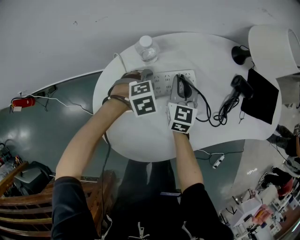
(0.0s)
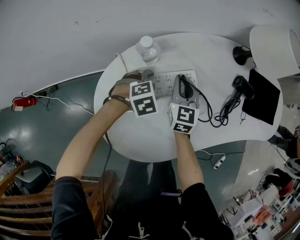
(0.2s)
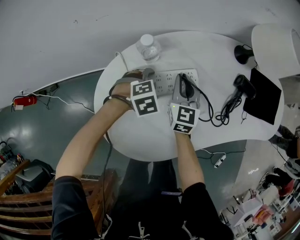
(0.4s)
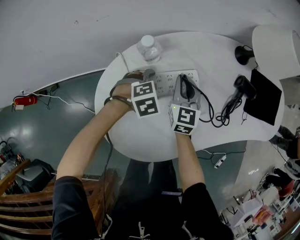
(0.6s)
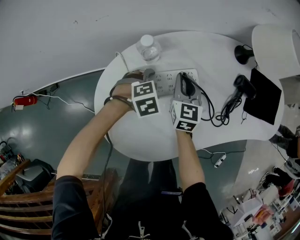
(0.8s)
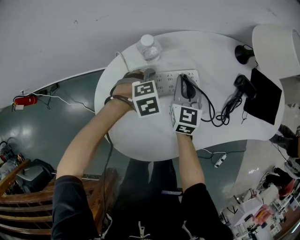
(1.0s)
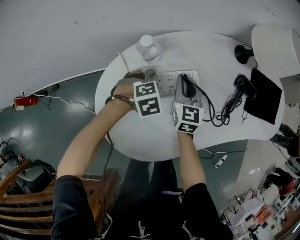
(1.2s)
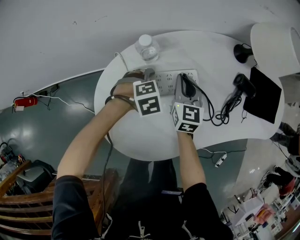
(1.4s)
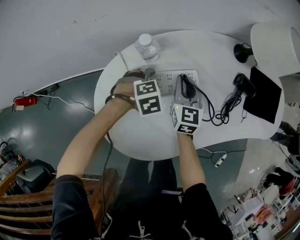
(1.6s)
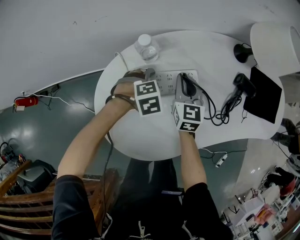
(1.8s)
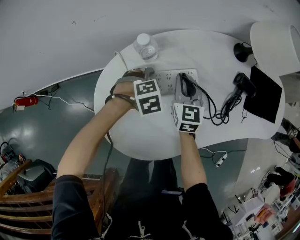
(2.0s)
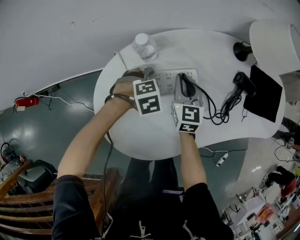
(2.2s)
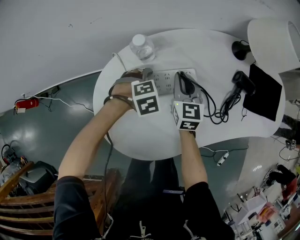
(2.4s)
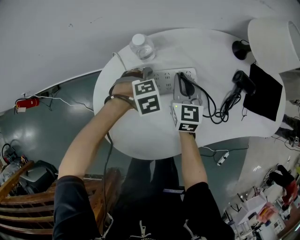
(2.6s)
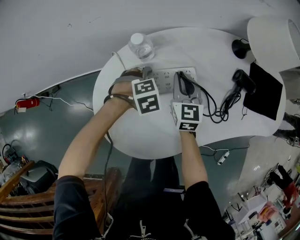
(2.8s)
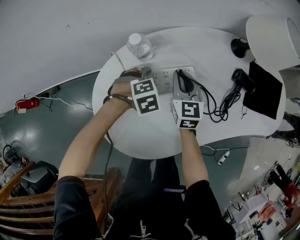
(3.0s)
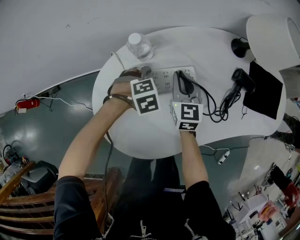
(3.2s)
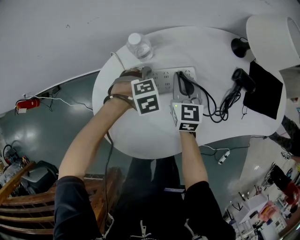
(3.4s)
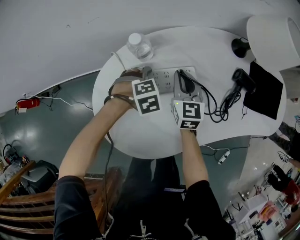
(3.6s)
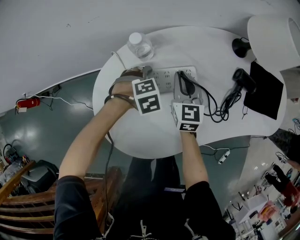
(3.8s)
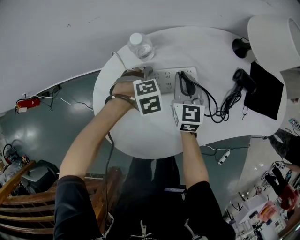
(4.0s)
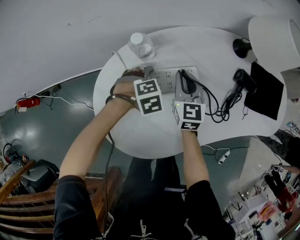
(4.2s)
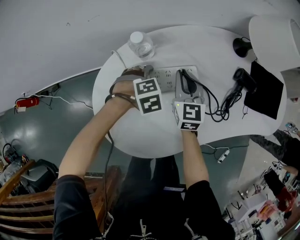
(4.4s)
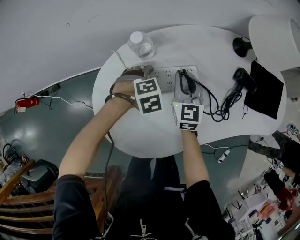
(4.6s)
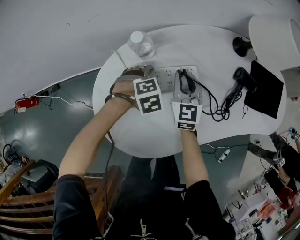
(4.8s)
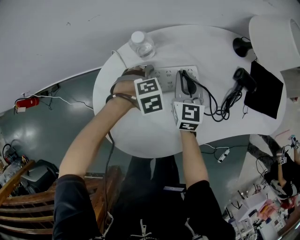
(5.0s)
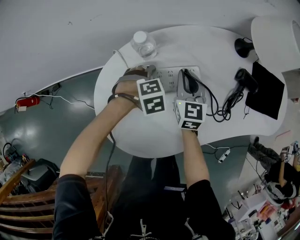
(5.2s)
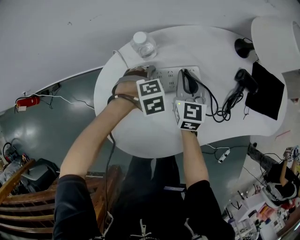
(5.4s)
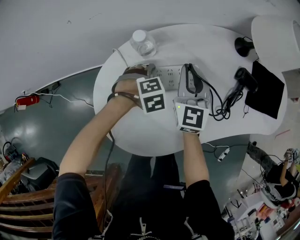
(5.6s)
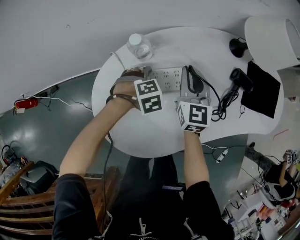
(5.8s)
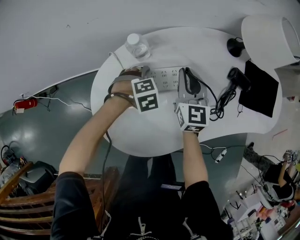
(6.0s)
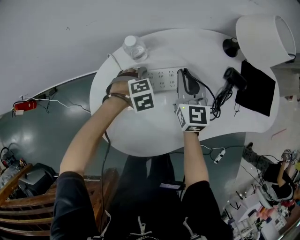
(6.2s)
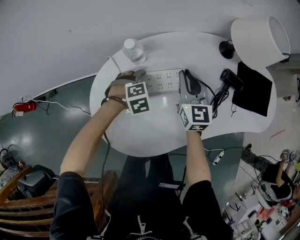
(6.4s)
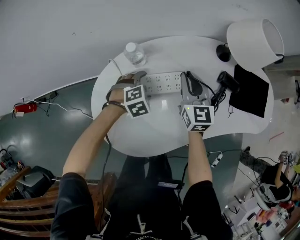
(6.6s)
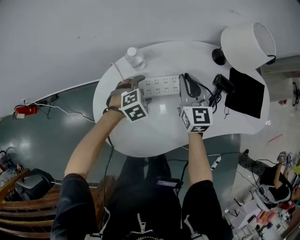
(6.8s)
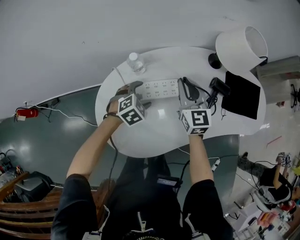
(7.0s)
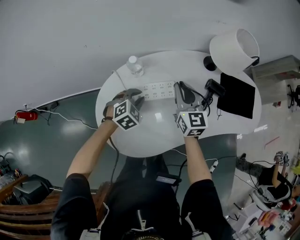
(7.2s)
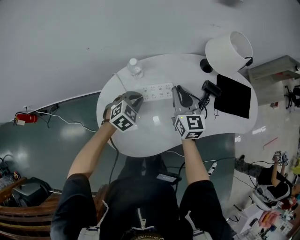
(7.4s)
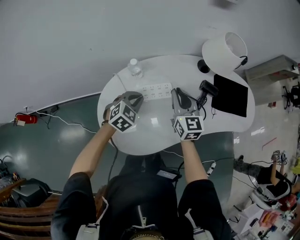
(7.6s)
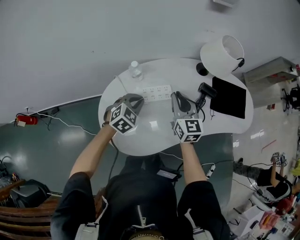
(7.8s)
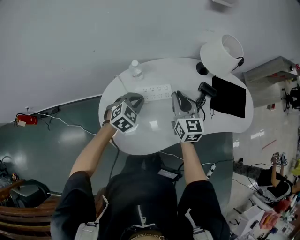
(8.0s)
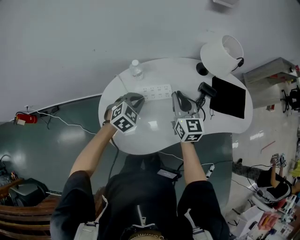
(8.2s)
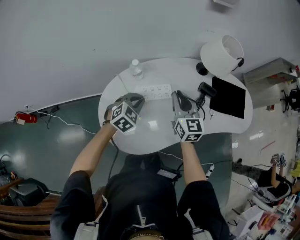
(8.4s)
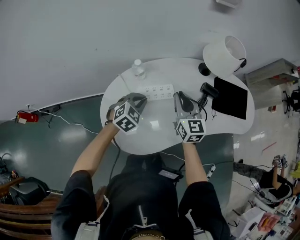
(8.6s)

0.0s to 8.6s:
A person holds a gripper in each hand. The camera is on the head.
0.0s to 2.8s: The grippers stay close to where they were, moving slightly.
2.8s to 4.4s: The two grippers keep their place.
4.4s to 5.8s: The right gripper goes approximately 5 cm upward.
5.8s to 7.2s: Both grippers move upward, some 10 cm. The left gripper swivels approximately 30 degrees, and closes up.
7.2s to 8.6s: The left gripper heads upward, covering roughly 10 cm. Meanwhile the right gripper goes approximately 5 cm backward.

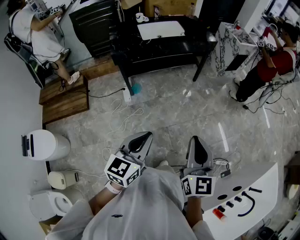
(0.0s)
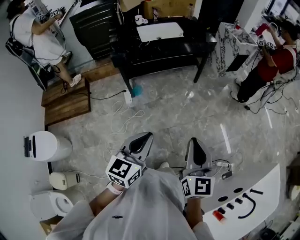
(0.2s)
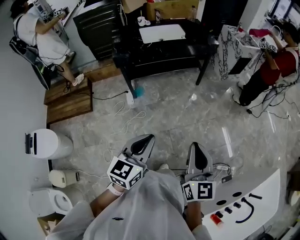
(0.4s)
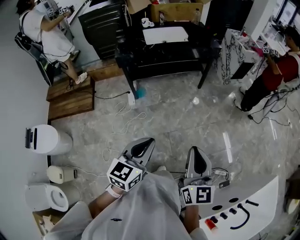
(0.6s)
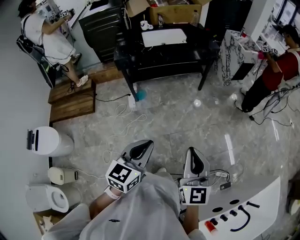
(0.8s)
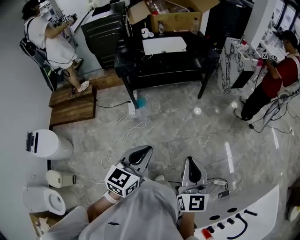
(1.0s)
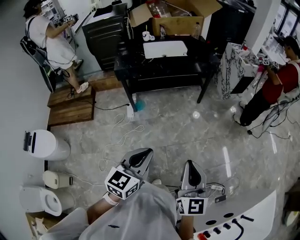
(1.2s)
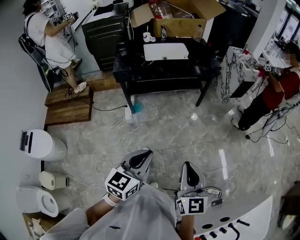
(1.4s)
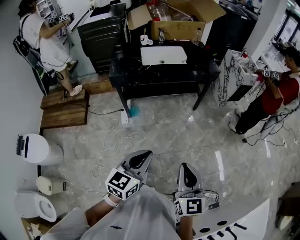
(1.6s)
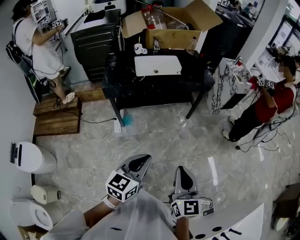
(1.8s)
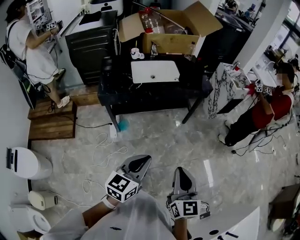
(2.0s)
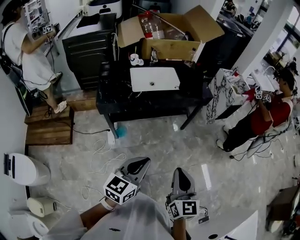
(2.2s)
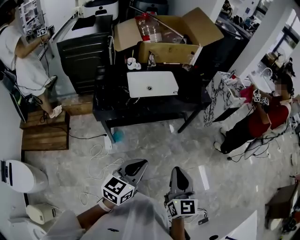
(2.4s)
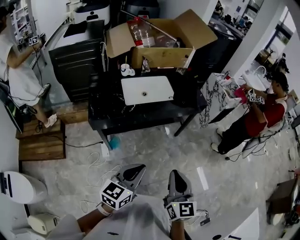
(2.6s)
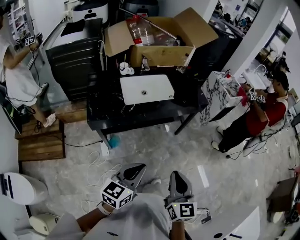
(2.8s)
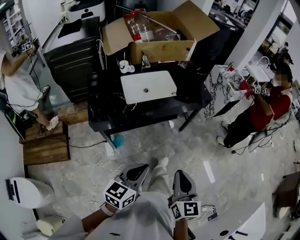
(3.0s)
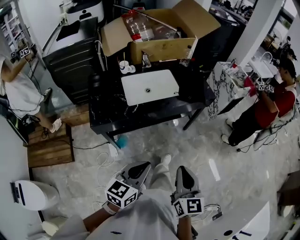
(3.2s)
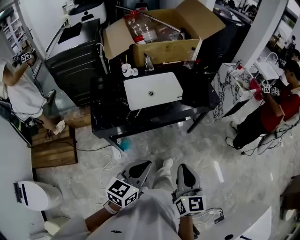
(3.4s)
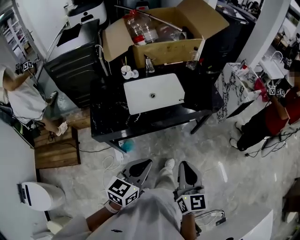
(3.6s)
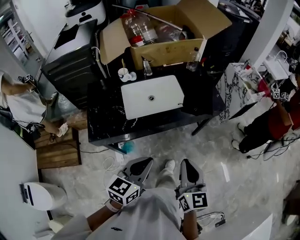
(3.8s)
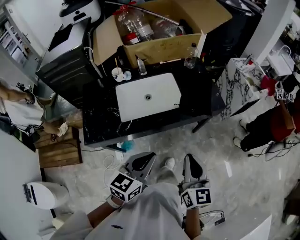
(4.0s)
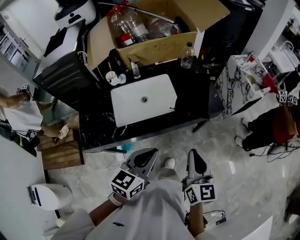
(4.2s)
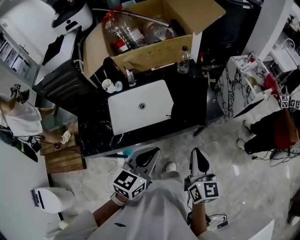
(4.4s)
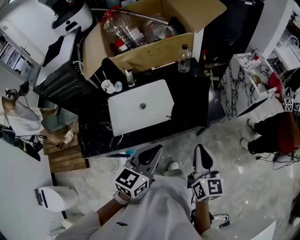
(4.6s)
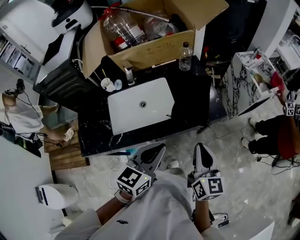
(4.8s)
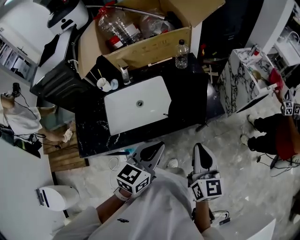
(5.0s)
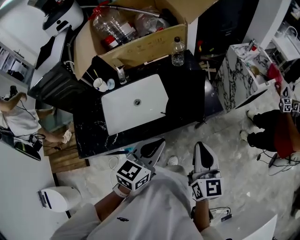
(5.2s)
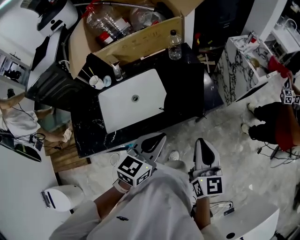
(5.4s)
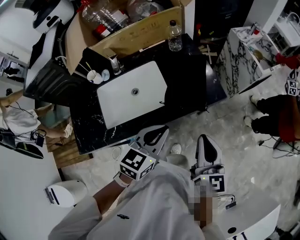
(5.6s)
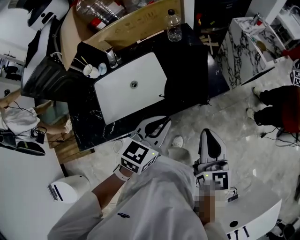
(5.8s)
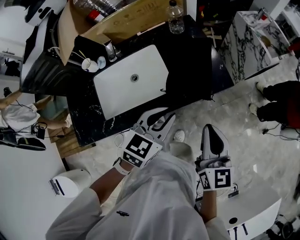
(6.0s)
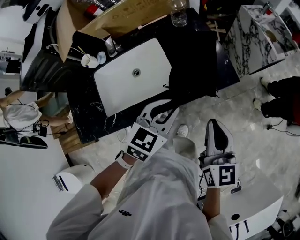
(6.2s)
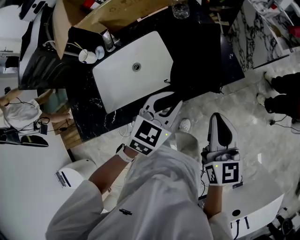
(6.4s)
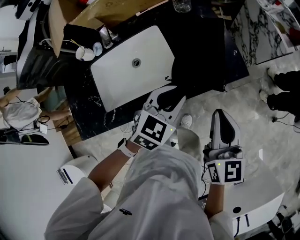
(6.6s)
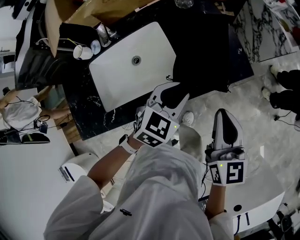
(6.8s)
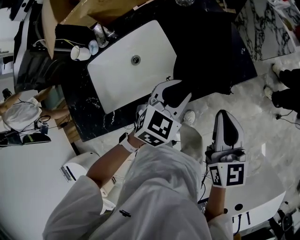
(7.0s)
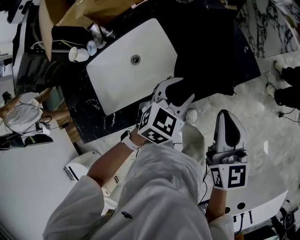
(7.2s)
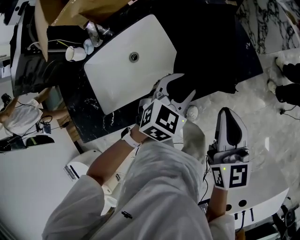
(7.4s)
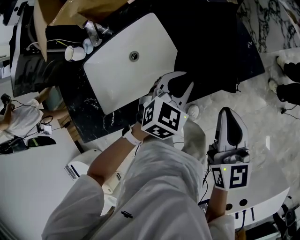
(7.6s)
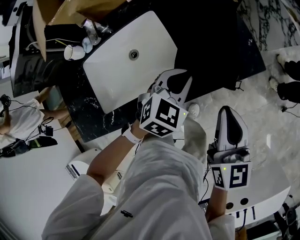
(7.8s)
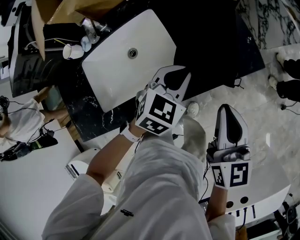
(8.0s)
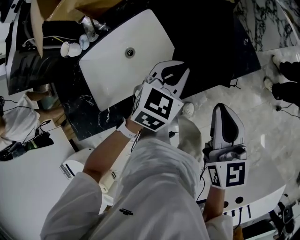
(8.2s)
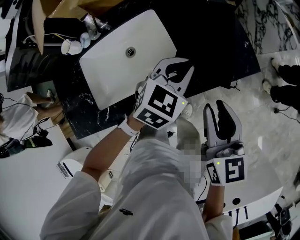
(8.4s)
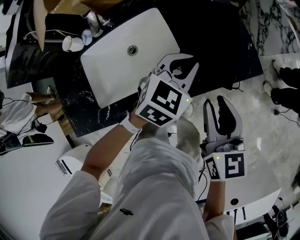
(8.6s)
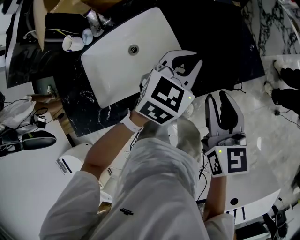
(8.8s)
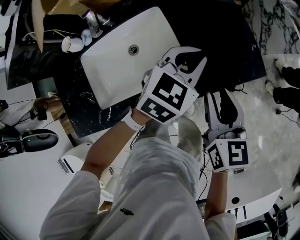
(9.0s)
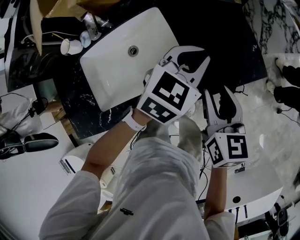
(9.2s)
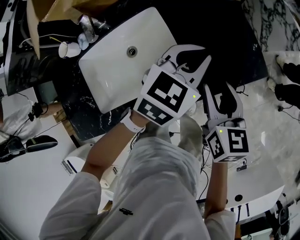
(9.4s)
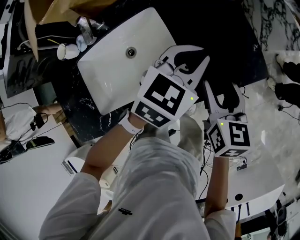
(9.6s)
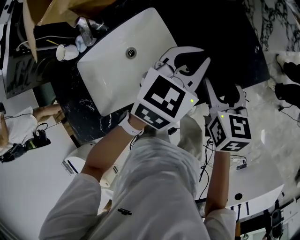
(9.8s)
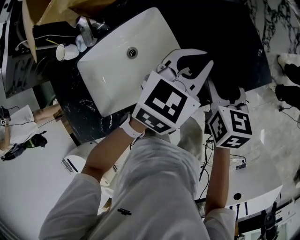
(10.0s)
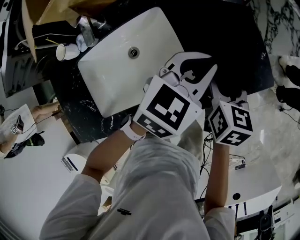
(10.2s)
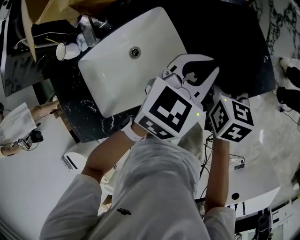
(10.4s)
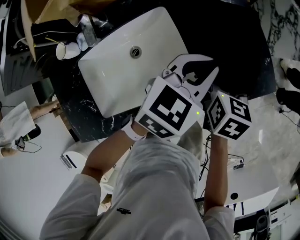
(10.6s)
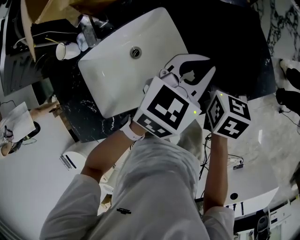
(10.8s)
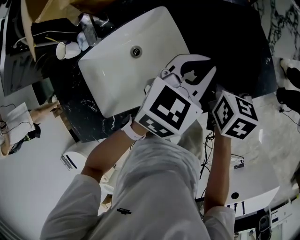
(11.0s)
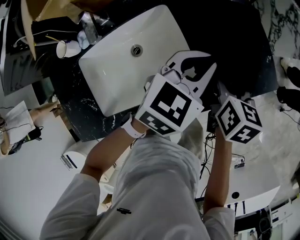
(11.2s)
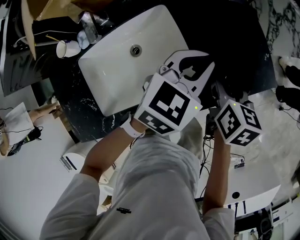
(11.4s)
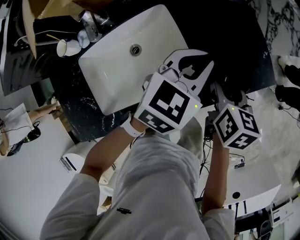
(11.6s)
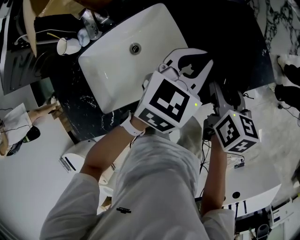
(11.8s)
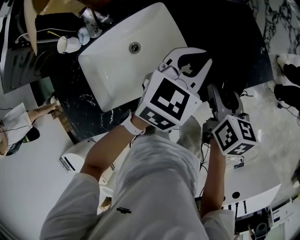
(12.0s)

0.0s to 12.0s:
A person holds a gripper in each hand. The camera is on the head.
0.0s to 1.6s: The grippers both shift forward and to the right by about 10 cm.
1.6s to 3.0s: The two grippers go some 30 cm forward and to the left.
3.0s to 4.4s: Both grippers move forward, roughly 40 cm.
4.4s to 6.0s: The left gripper heads forward, downward and to the right, covering roughly 15 cm, while the right gripper moves forward, approximately 10 cm.
6.0s to 7.6s: The right gripper moves downward and forward, about 10 cm; the left gripper goes roughly 20 cm downward and forward, and rotates roughly 20 degrees.
7.6s to 9.0s: The left gripper moves forward and upward, roughly 10 cm, while the right gripper shifts by some 5 cm, and opens up.
9.0s to 10.4s: The right gripper moves downward and forward, roughly 15 cm, and opens.
10.4s to 12.0s: The right gripper heads backward, covering approximately 5 cm.

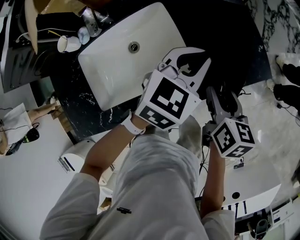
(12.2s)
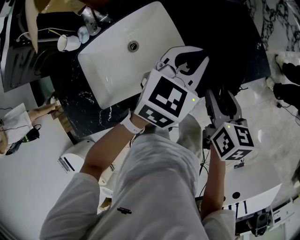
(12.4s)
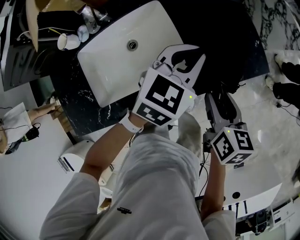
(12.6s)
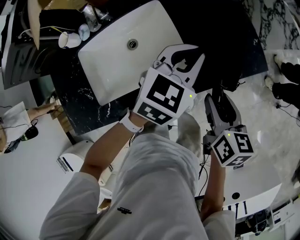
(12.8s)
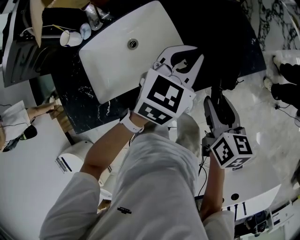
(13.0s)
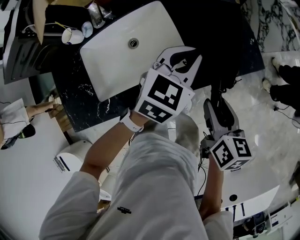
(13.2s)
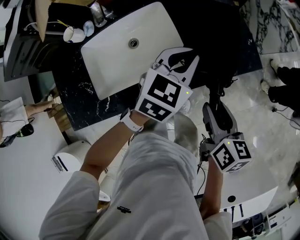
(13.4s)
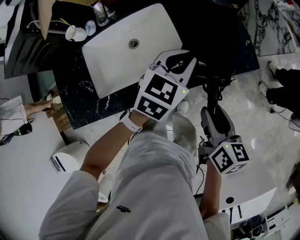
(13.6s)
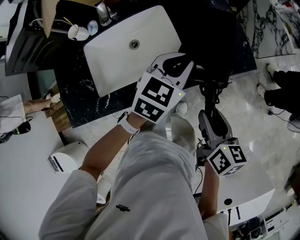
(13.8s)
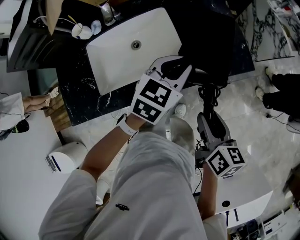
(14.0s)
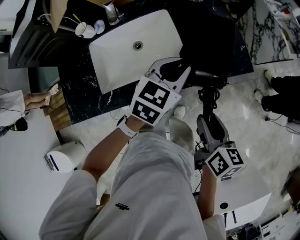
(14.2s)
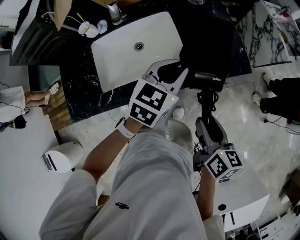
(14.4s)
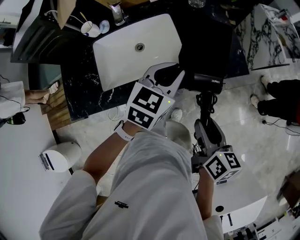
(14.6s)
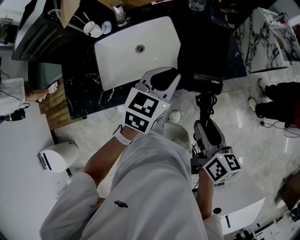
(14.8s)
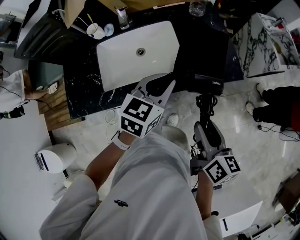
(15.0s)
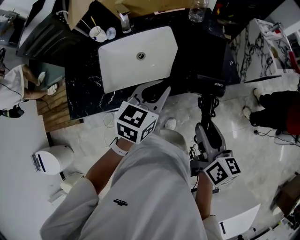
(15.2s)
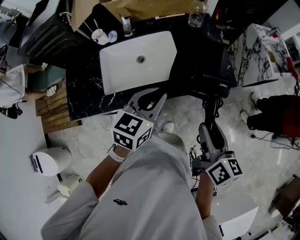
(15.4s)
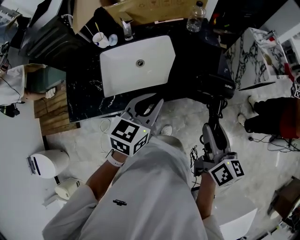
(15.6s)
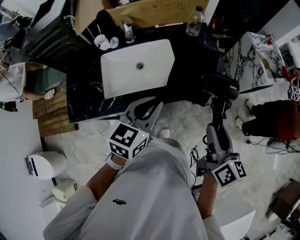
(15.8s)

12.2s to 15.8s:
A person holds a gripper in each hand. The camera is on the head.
12.2s to 14.0s: The left gripper heads backward, covering roughly 10 cm; the right gripper moves backward and upward, roughly 15 cm.
14.0s to 15.8s: The left gripper goes roughly 20 cm backward, upward and to the left; the right gripper travels upward by roughly 15 cm.
